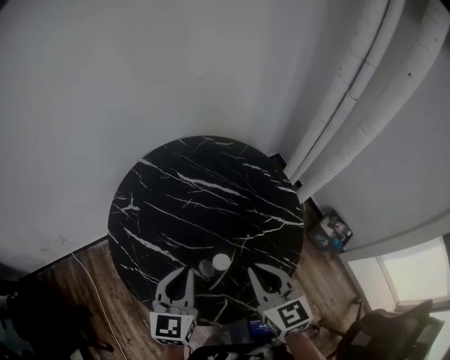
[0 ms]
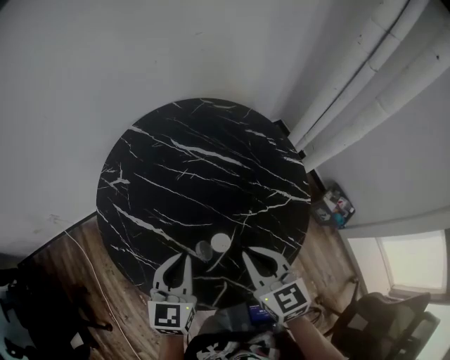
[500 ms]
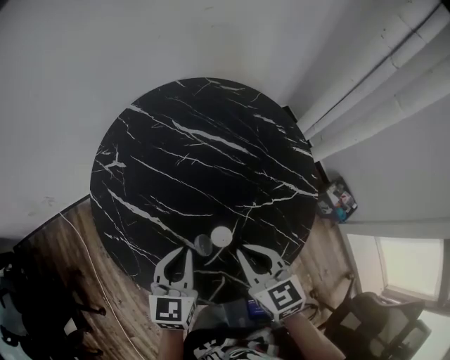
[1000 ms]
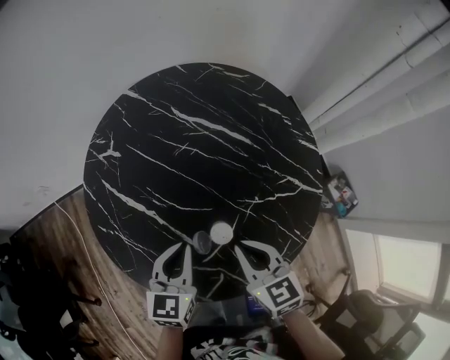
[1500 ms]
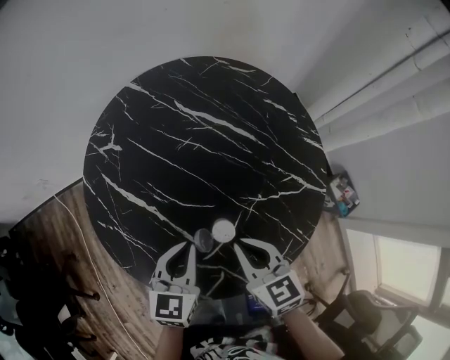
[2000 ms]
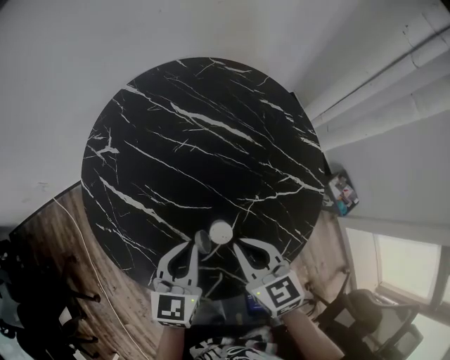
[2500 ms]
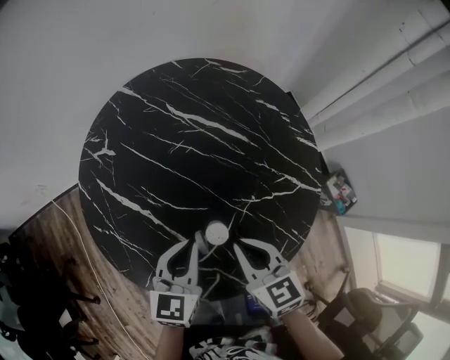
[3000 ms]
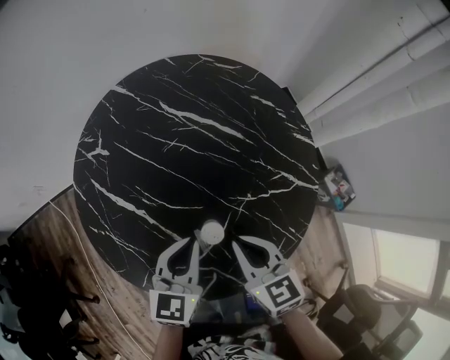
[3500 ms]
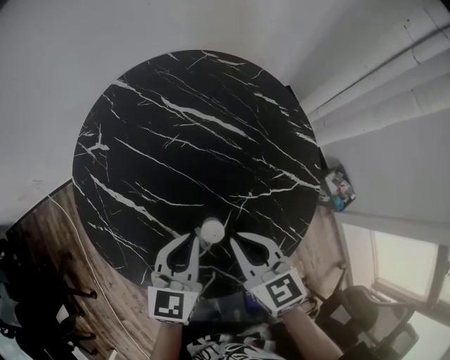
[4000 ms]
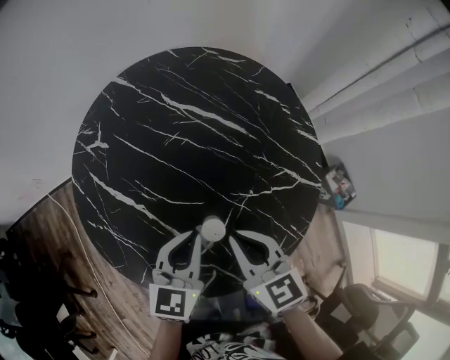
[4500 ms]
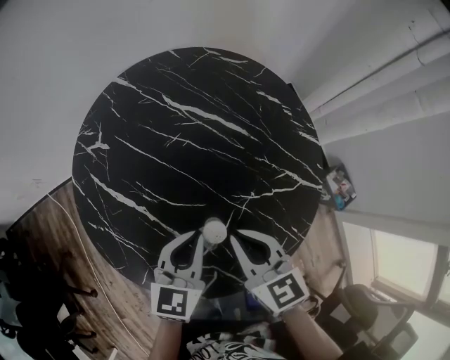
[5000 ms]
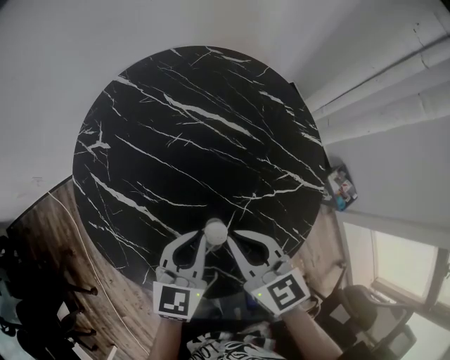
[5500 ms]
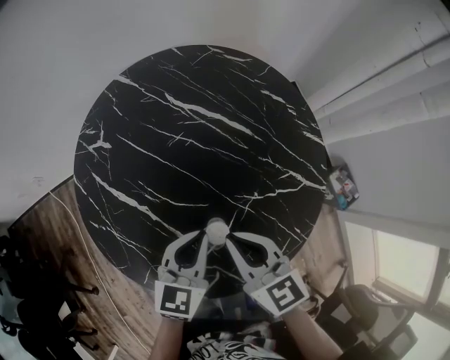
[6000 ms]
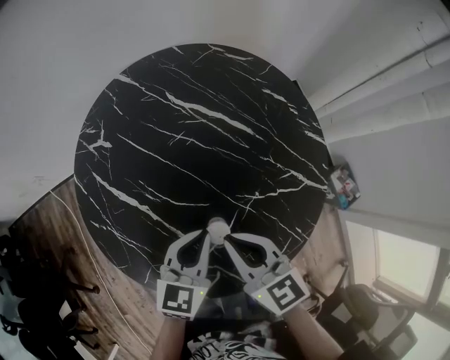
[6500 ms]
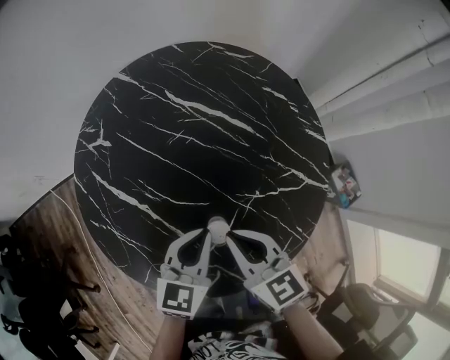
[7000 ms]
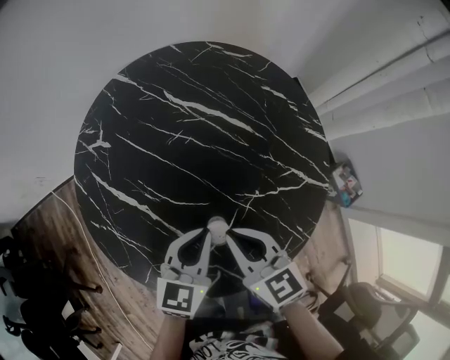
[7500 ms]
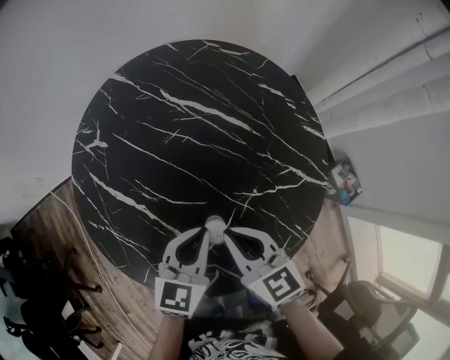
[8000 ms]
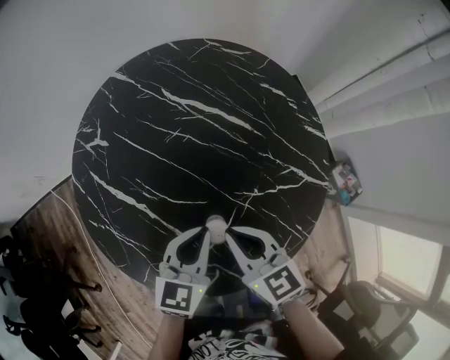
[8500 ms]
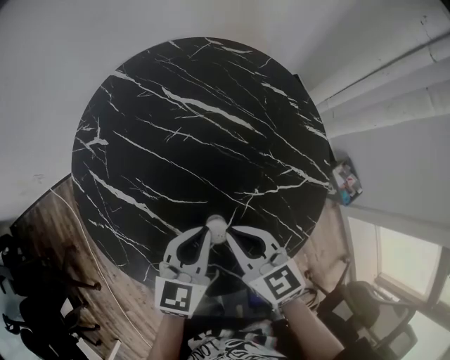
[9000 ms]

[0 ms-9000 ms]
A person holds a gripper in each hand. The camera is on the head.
0 ms to 2000 ms: The grippers both shift downward by some 15 cm.
2000 ms to 4500 ms: The left gripper changes place by some 5 cm.
4500 ms to 9000 ms: There are only small adjustments of the grippers.

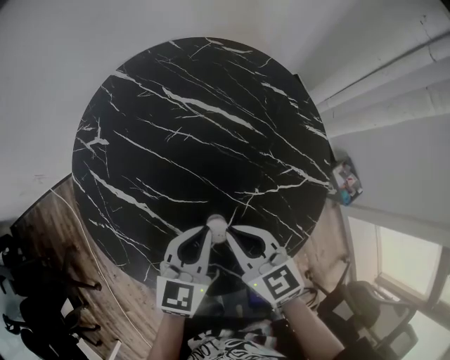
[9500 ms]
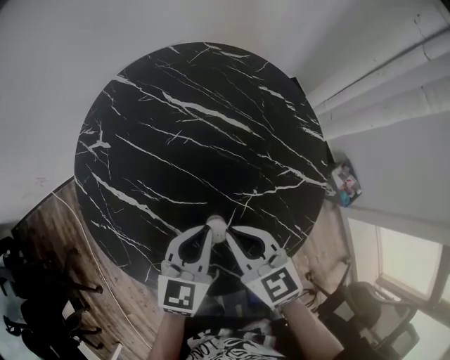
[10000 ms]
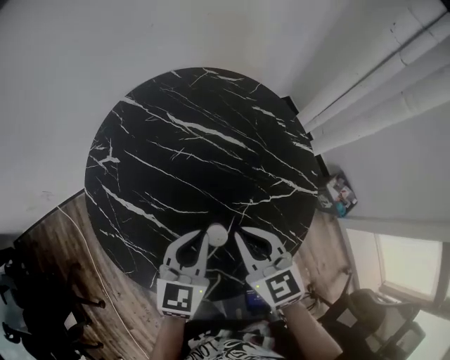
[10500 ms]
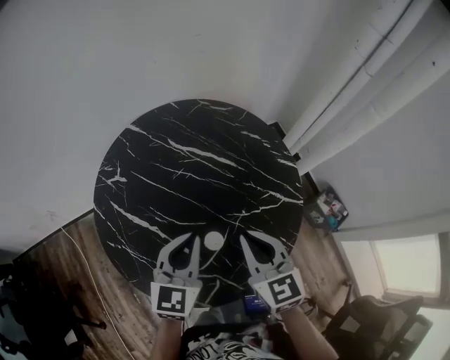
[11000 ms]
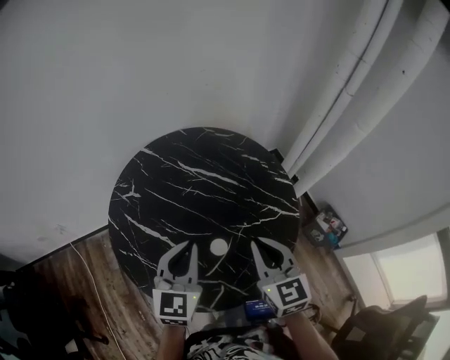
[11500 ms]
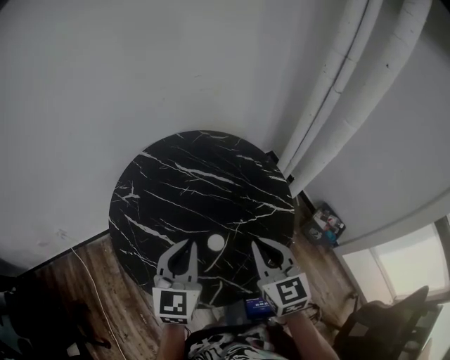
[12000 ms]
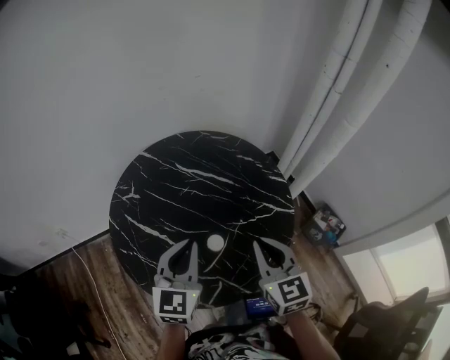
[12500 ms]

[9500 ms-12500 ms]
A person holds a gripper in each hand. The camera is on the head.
9500 ms to 11000 ms: The grippers both shift upward by approximately 10 cm. The right gripper swivels some 20 degrees.
11000 ms to 12500 ms: The right gripper goes about 5 cm backward and upward. Meanwhile the left gripper goes roughly 5 cm upward.

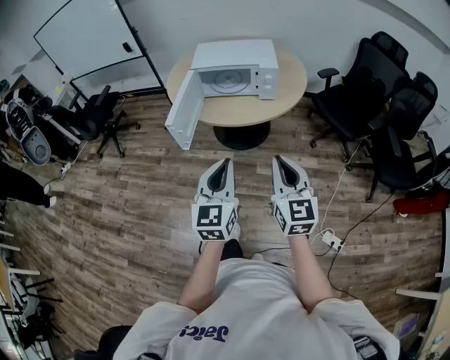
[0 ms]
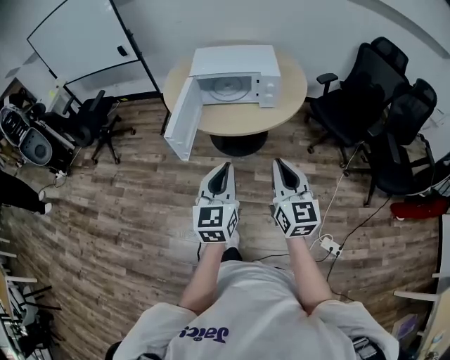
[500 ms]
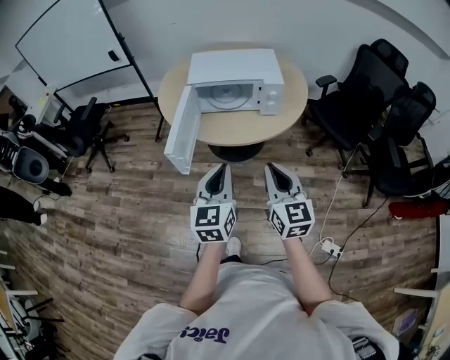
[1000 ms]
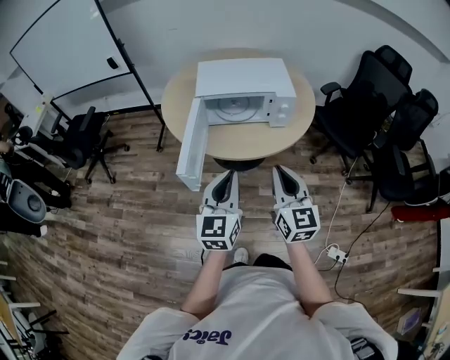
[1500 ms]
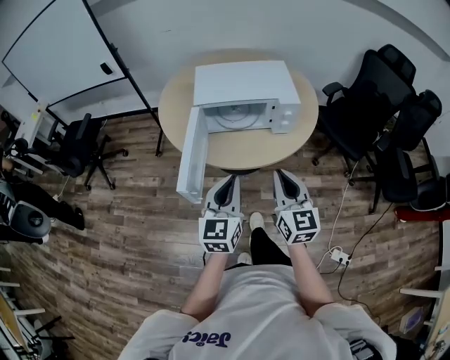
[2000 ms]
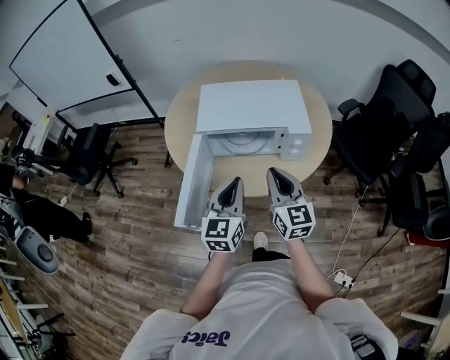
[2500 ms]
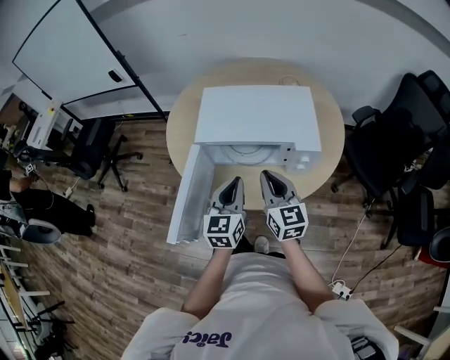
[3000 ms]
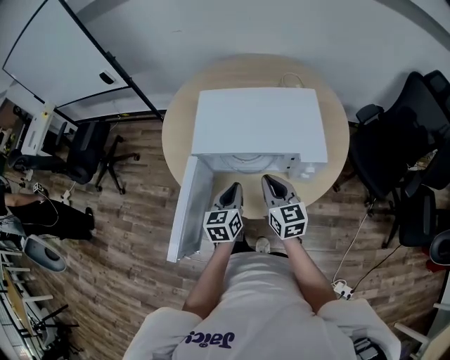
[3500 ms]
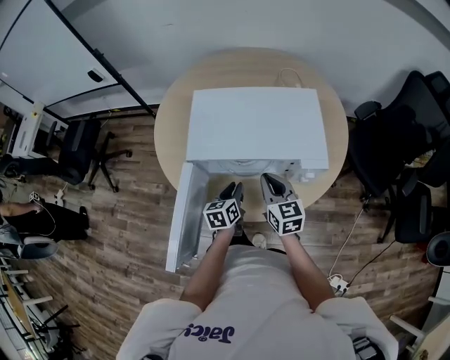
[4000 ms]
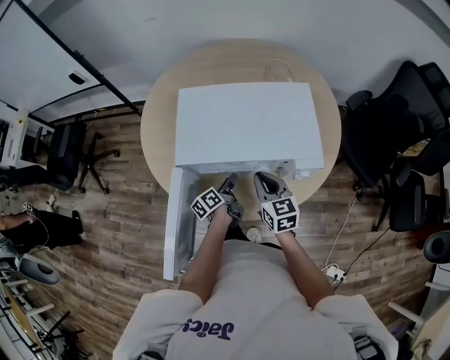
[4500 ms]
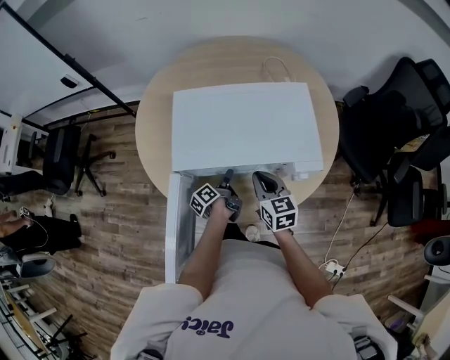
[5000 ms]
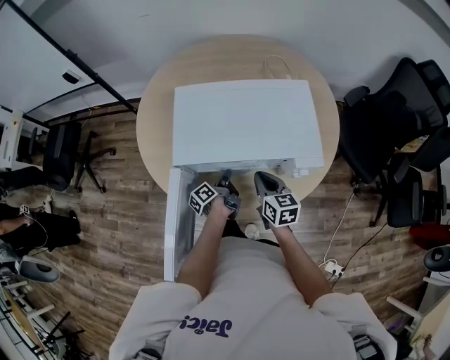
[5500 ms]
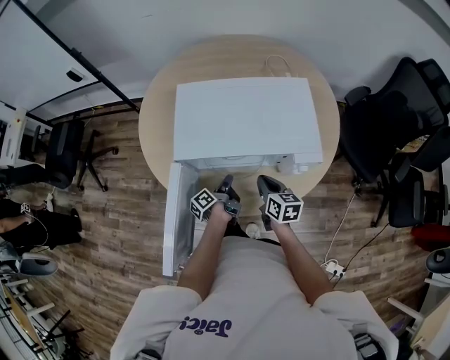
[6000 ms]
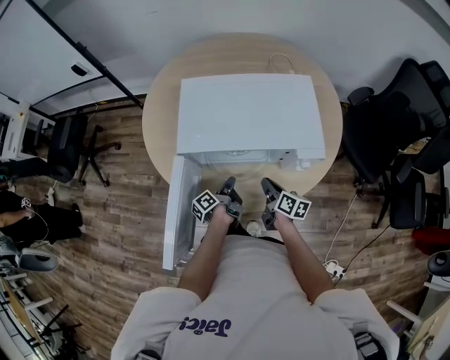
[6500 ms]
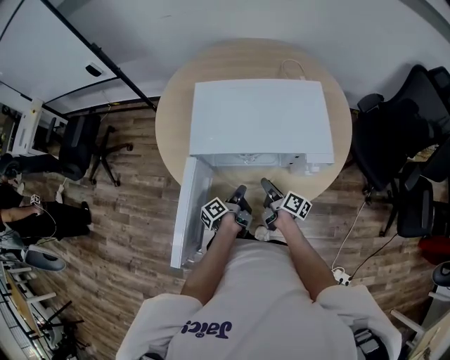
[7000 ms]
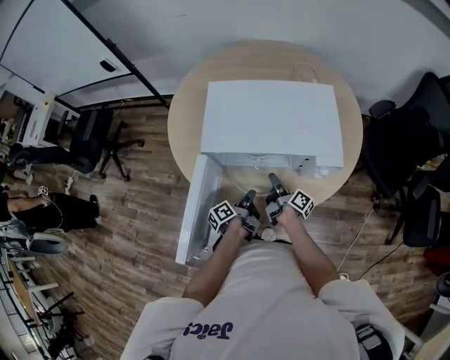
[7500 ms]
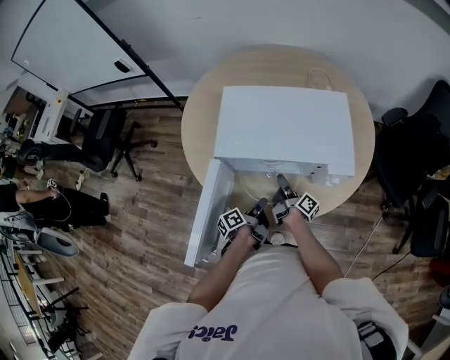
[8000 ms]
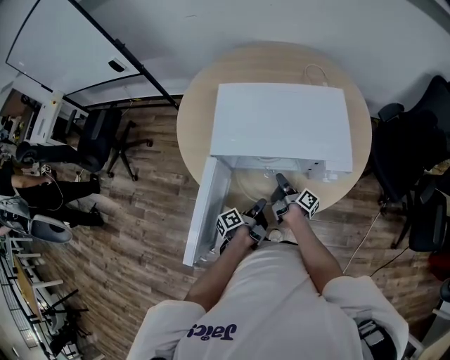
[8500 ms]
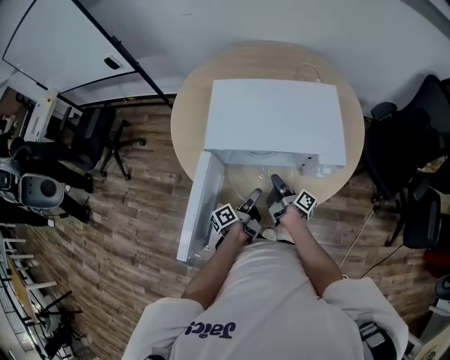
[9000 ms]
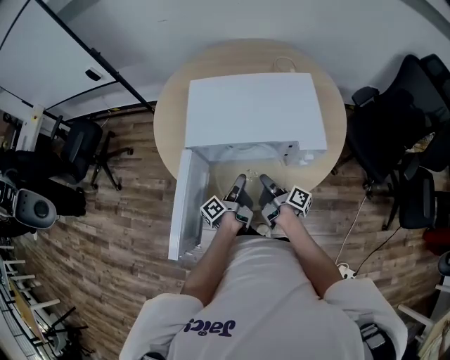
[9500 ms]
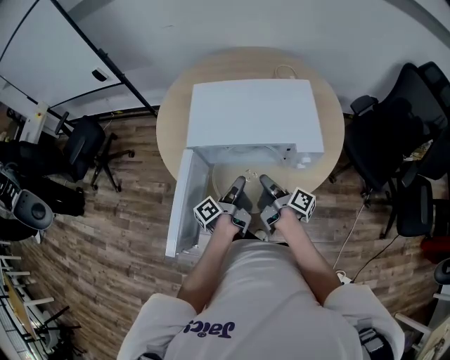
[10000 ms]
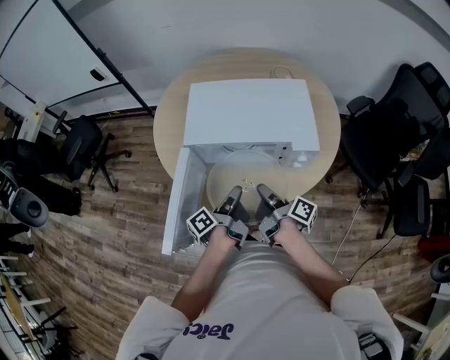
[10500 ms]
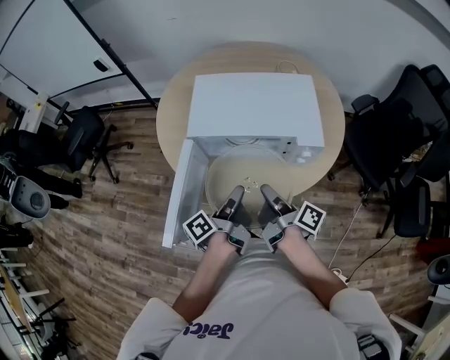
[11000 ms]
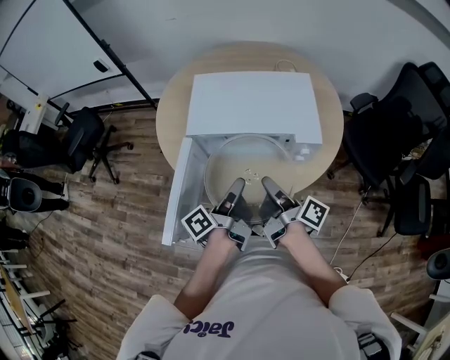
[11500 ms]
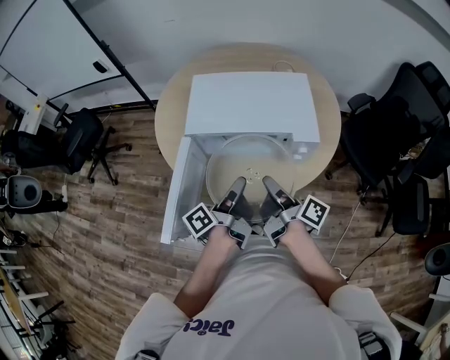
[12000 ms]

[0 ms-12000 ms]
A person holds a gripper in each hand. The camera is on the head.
0 ms to 2000 ms: Both grippers move forward and to the left, approximately 25 cm.
2000 ms to 4000 ms: Both grippers travel together forward and downward, approximately 35 cm. The right gripper changes its angle by roughly 20 degrees; the left gripper rotates some 40 degrees.
4000 ms to 6000 ms: The two grippers go roughly 10 cm downward. The left gripper twists roughly 60 degrees counterclockwise, seen from behind, and opens, then closes again. Meanwhile the right gripper swivels roughly 20 degrees.
6000 ms to 8000 ms: The right gripper goes roughly 5 cm downward, rolls clockwise, seen from behind, by about 50 degrees, and opens up. Meanwhile the left gripper shifts roughly 10 cm backward.
8000 ms to 10000 ms: The left gripper moves upward, approximately 10 cm, and opens, then closes once more, while the right gripper goes about 15 cm upward and backward, and closes up.
10000 ms to 12000 ms: Both grippers move upward and backward, about 10 cm.

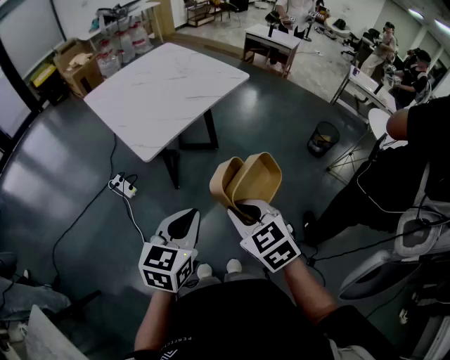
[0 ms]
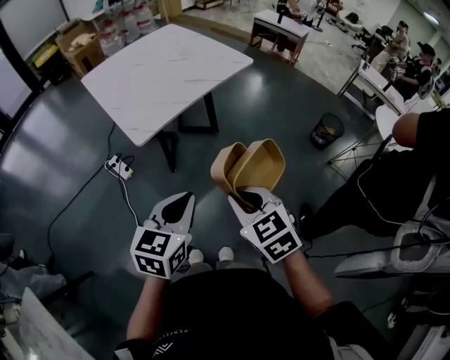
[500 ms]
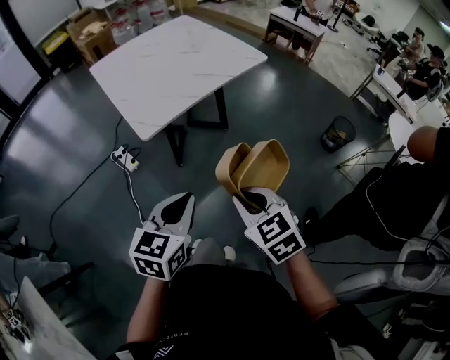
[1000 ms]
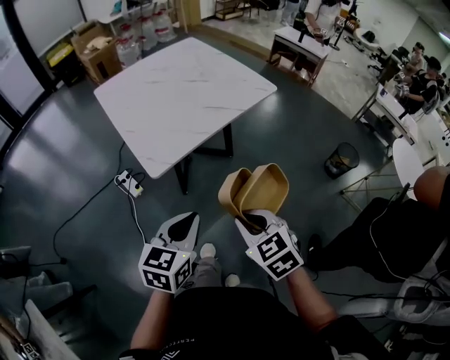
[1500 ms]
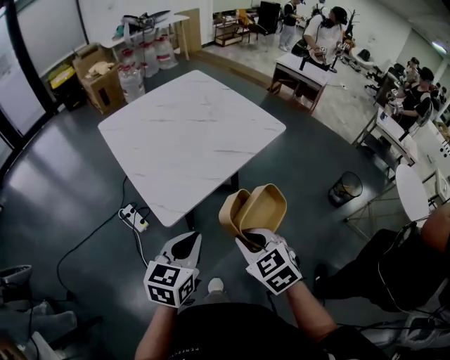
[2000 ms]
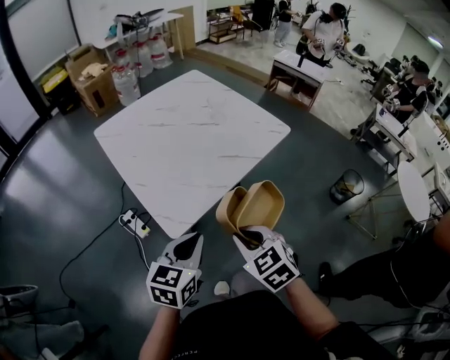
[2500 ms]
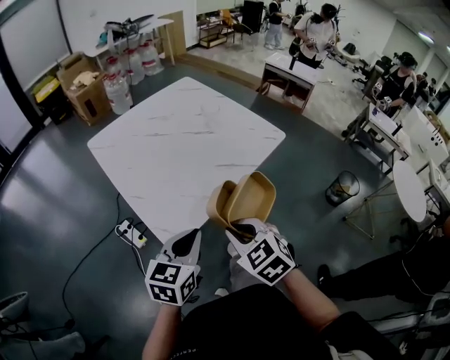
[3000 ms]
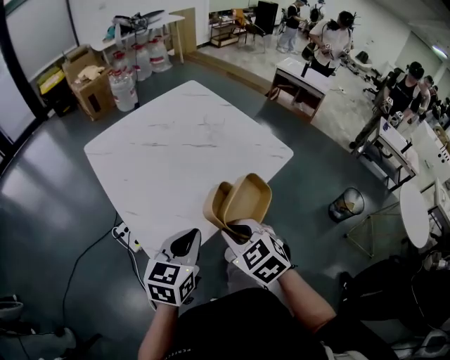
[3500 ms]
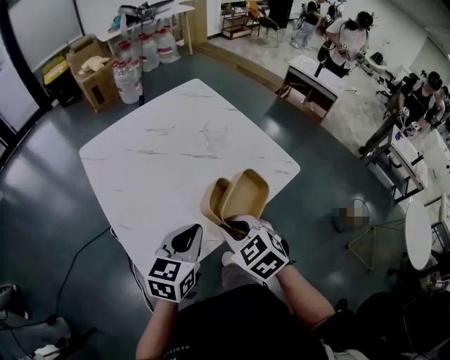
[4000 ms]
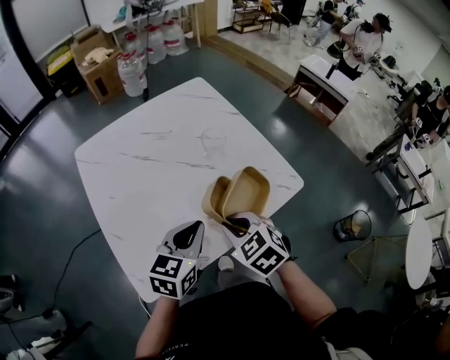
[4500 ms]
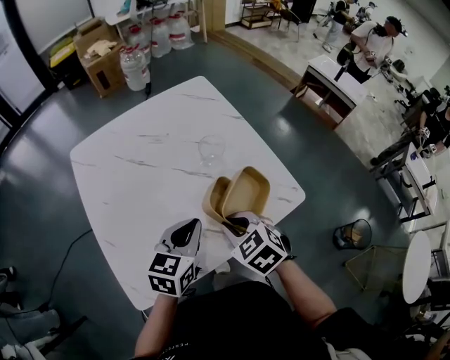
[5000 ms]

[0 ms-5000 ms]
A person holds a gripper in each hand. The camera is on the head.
0 ms to 2500 ms: Both grippers travel together forward, approximately 30 cm.
2500 ms to 5000 ms: Both grippers travel together forward, roughly 35 cm.
